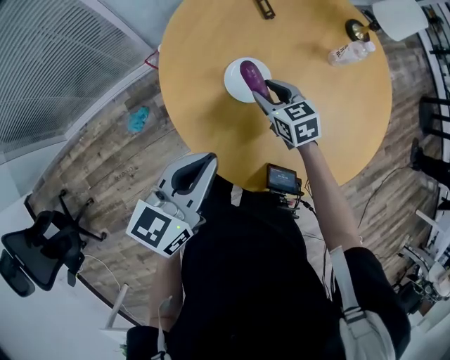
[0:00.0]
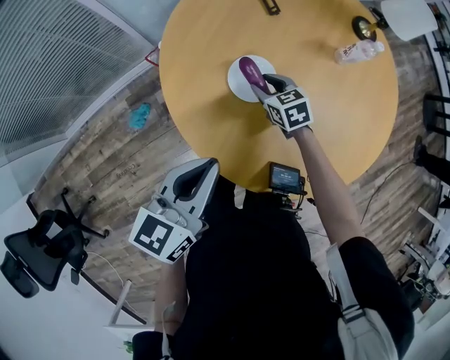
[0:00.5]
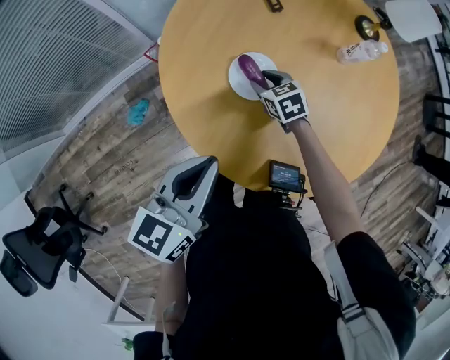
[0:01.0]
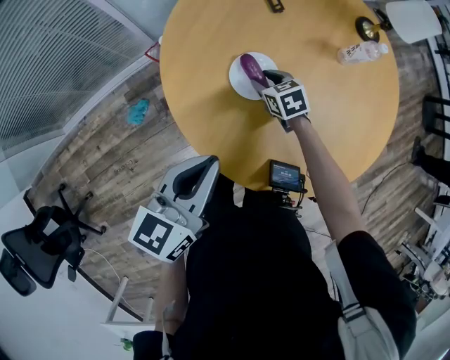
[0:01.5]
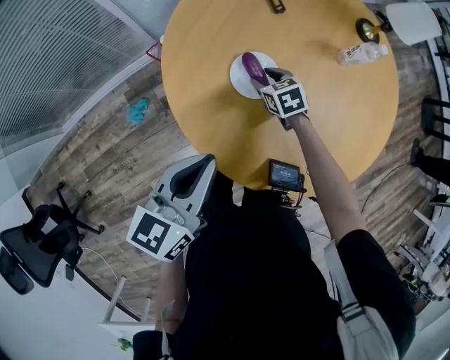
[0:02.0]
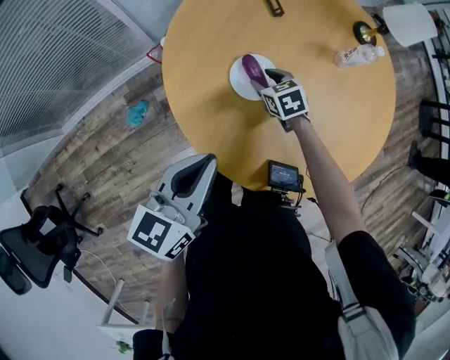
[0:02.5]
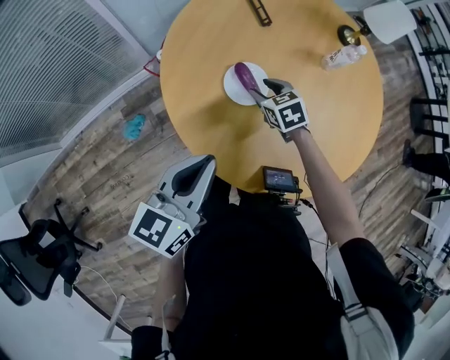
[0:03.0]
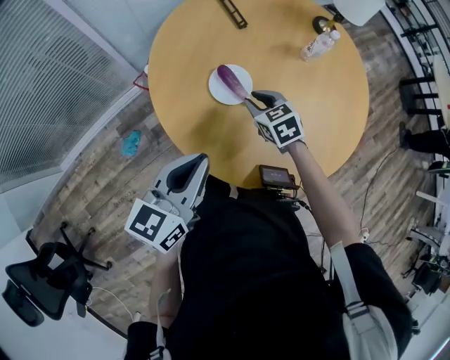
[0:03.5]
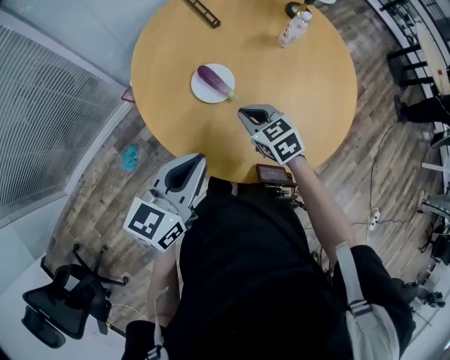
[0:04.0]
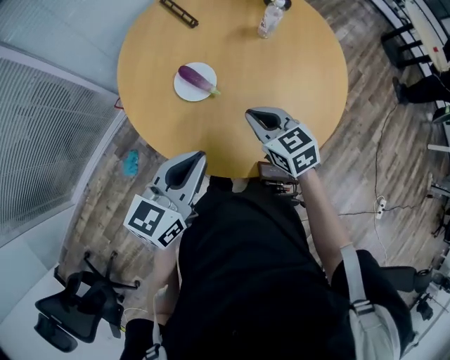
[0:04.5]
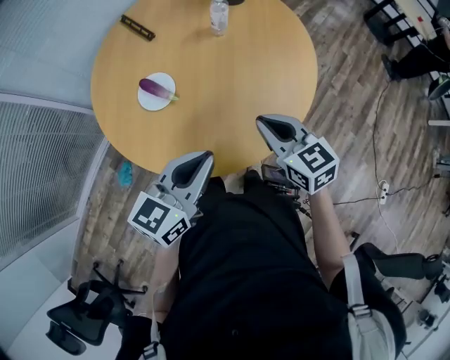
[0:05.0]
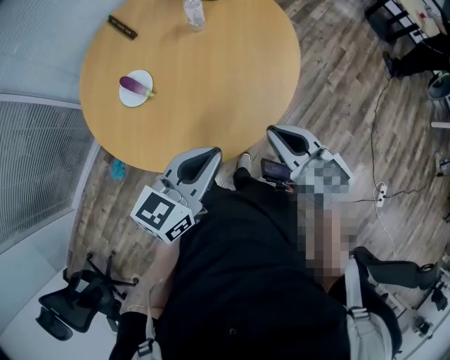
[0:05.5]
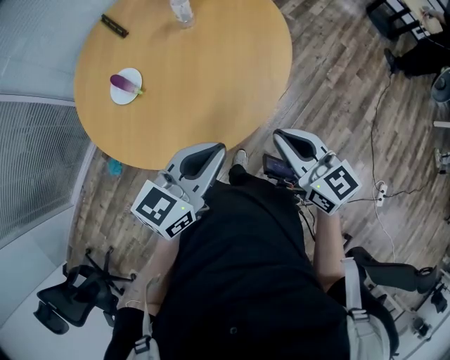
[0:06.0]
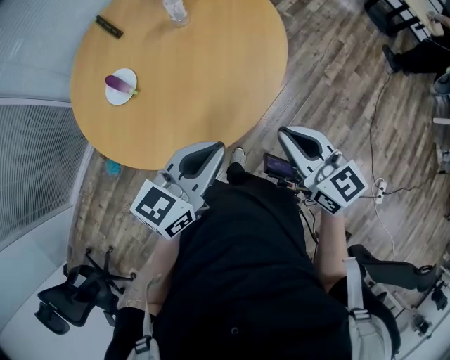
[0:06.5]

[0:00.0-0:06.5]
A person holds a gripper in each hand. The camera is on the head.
0:00.0 to 0:02.0: The right gripper goes about 10 cm downward.
0:02.0 to 0:04.5: The left gripper is displaced to the right and backward by approximately 10 cm, and swivels approximately 20 degrees. Meanwhile the right gripper travels backward, upward and to the right by about 30 cm, changes its angle by roughly 20 degrees, and closes its fingers.
0:04.5 to 0:06.5: Both grippers move to the right, roughly 35 cm. The right gripper rotates approximately 20 degrees.

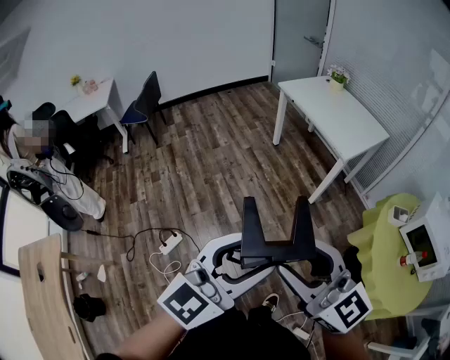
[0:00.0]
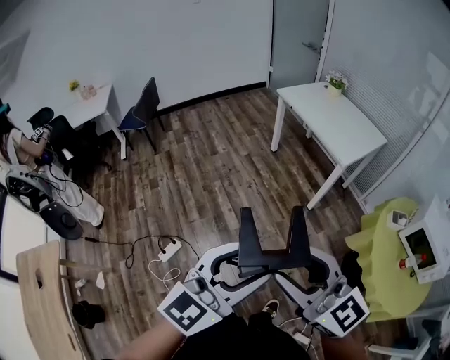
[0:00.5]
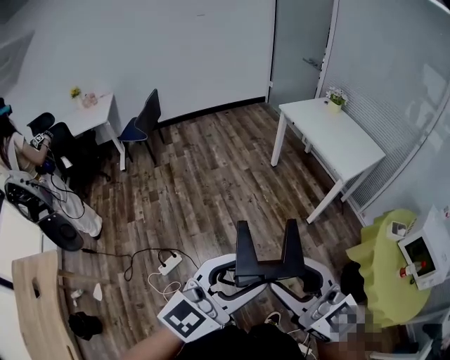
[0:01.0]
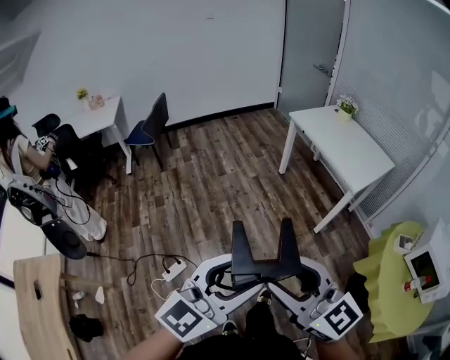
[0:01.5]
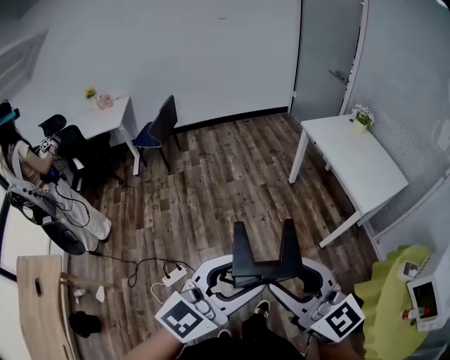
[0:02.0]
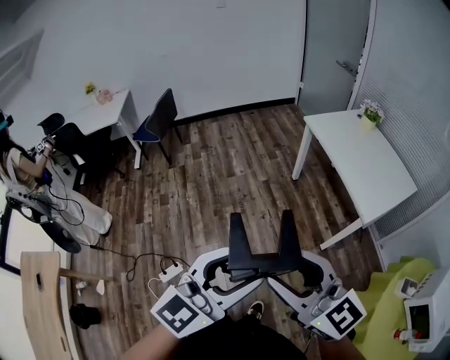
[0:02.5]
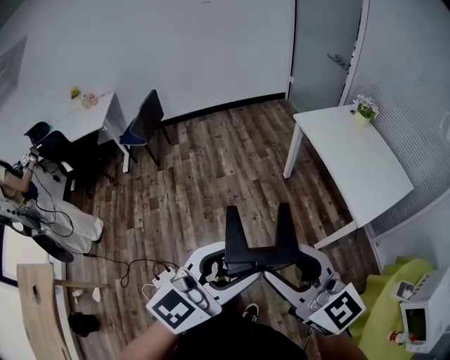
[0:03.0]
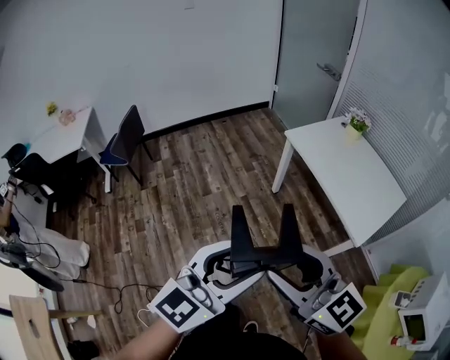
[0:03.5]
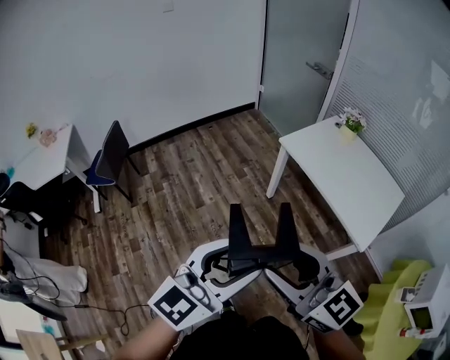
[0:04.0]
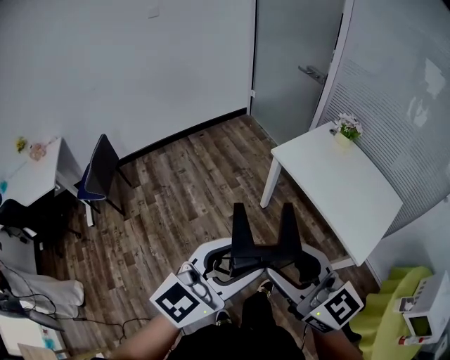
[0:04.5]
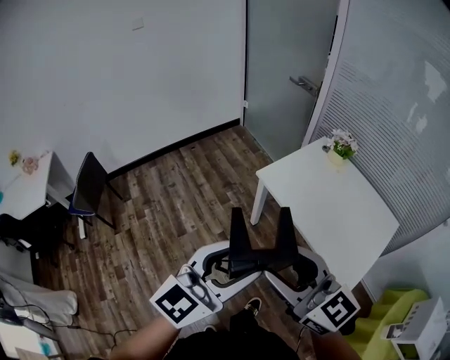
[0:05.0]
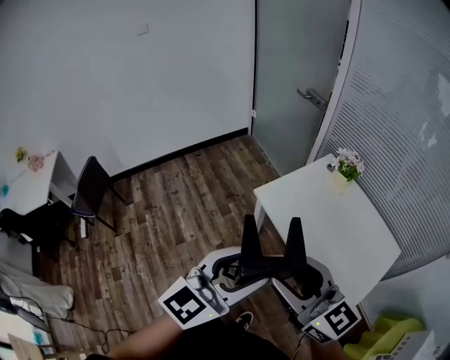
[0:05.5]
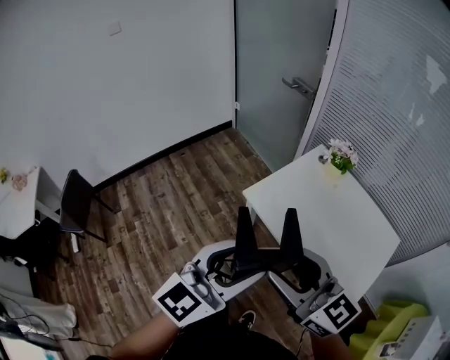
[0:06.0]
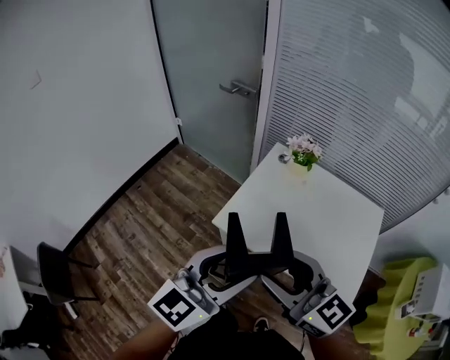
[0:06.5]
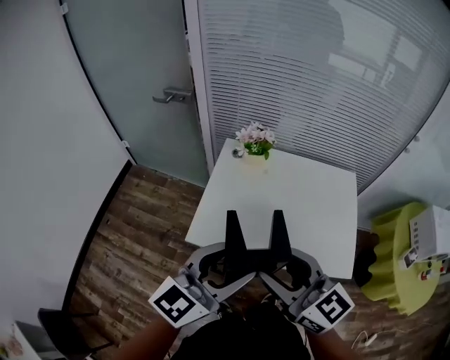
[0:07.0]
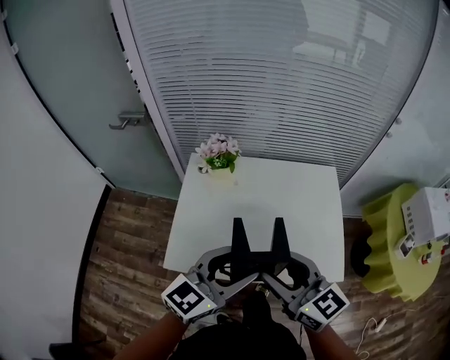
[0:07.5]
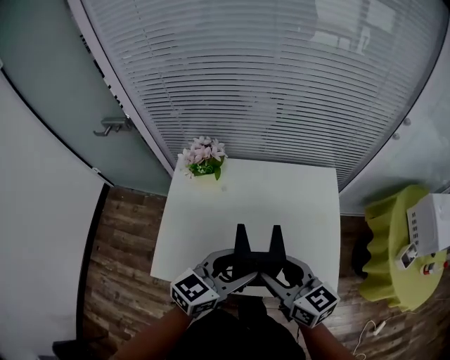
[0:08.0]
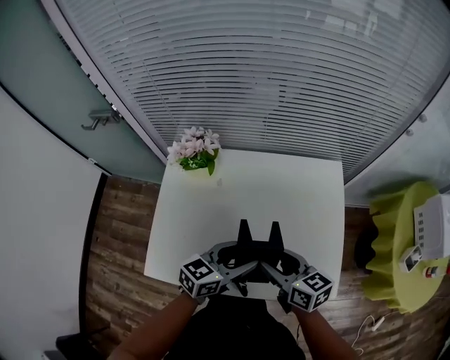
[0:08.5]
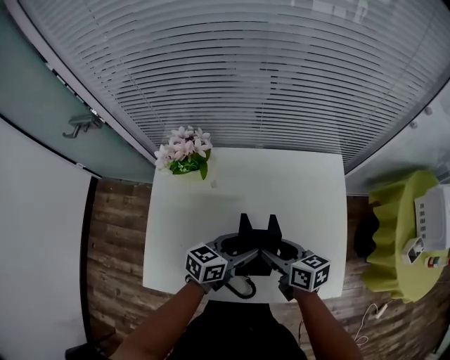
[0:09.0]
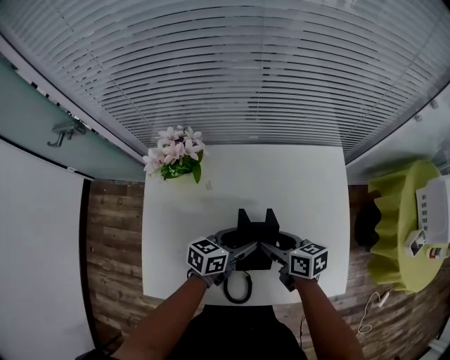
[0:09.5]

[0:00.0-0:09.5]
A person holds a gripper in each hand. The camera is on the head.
0:00.0 to 0:02.0: Both grippers travel together forward and to the left, roughly 20 cm.
0:02.0 to 0:04.0: The two grippers travel together, forward, some 40 cm.
0:04.0 to 0:05.5: The two grippers go approximately 35 cm forward and to the right.
0:05.5 to 0:07.5: The right gripper ends up some 30 cm from where it was, and swivels approximately 50 degrees; the left gripper ends up some 30 cm from where it was, and rotates about 50 degrees.
0:07.5 to 0:09.5: Both grippers travel together downward and forward, some 35 cm. The right gripper swivels some 40 degrees. Meanwhile the left gripper rotates some 40 degrees.

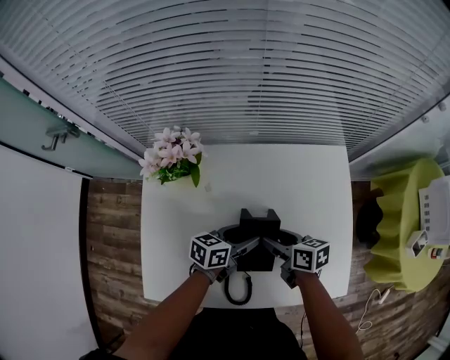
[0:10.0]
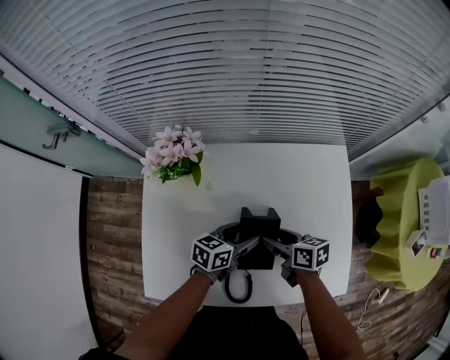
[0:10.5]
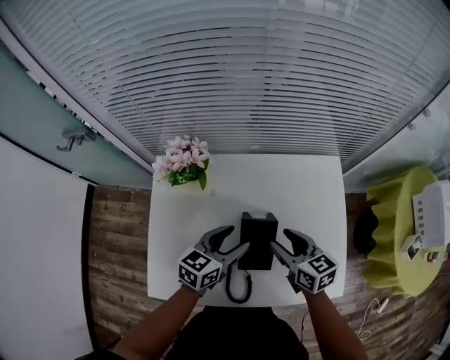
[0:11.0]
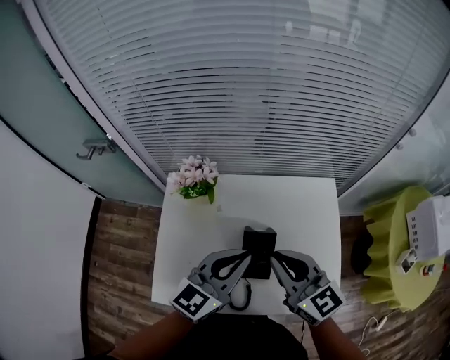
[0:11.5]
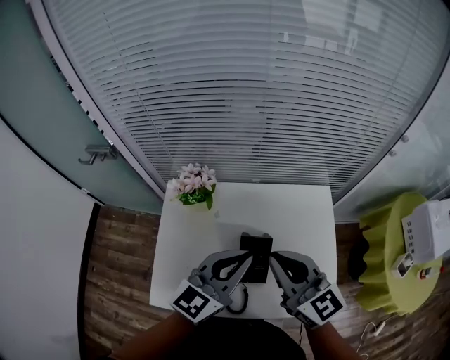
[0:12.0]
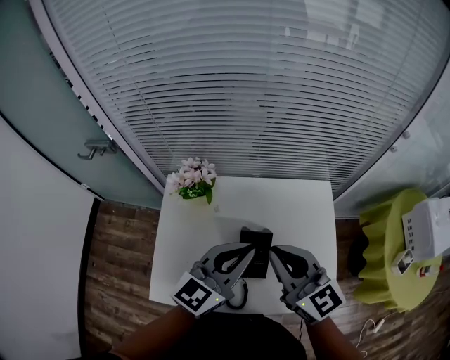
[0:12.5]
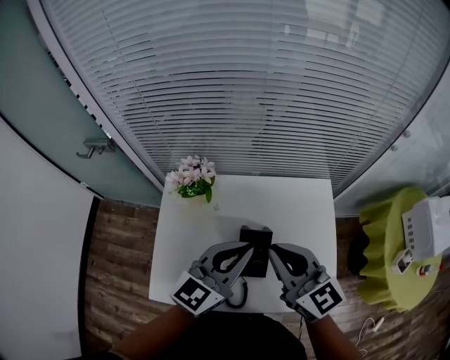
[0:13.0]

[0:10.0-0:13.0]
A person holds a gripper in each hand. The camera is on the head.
0:10.0 to 0:11.5: The two grippers go some 30 cm upward. The left gripper turns by about 50 degrees, and closes its fingers. The right gripper rolls counterclockwise, seen from behind, by about 40 degrees, and closes up.
0:11.5 to 0:13.0: The grippers move only a little.

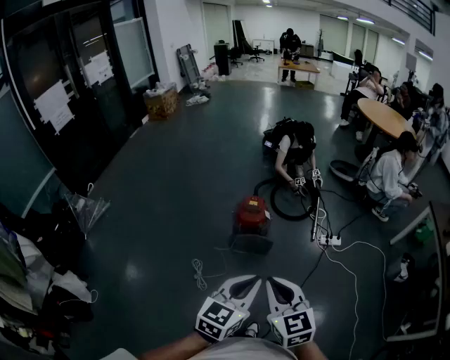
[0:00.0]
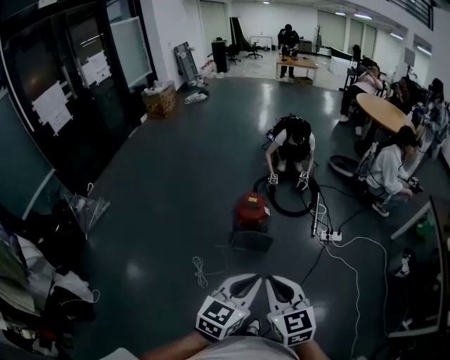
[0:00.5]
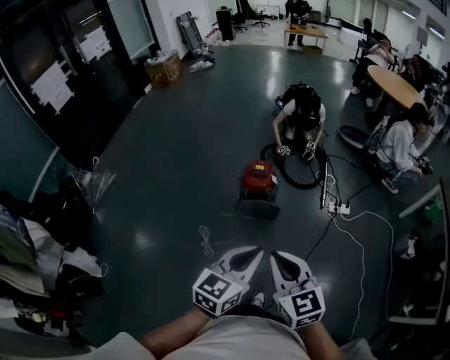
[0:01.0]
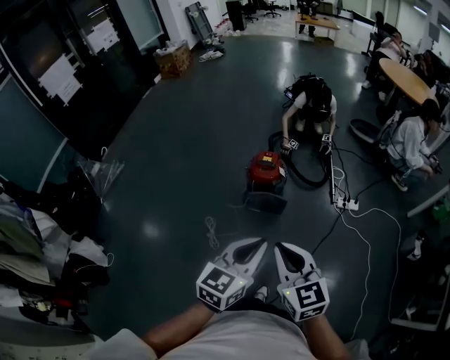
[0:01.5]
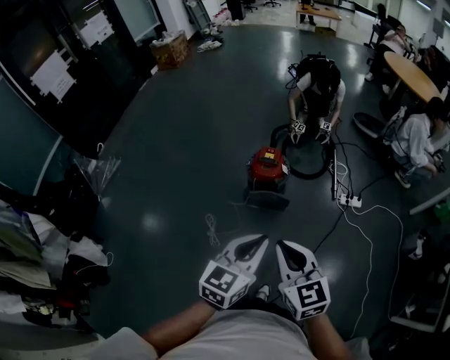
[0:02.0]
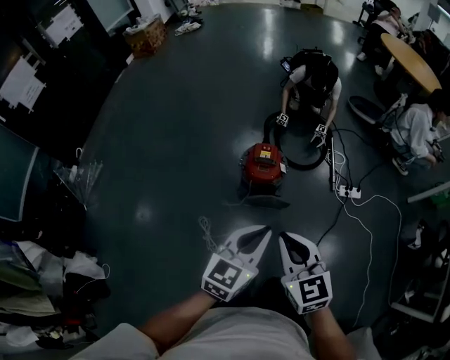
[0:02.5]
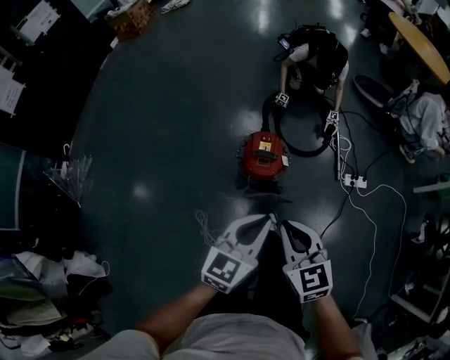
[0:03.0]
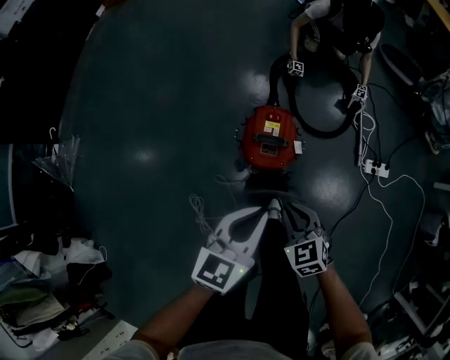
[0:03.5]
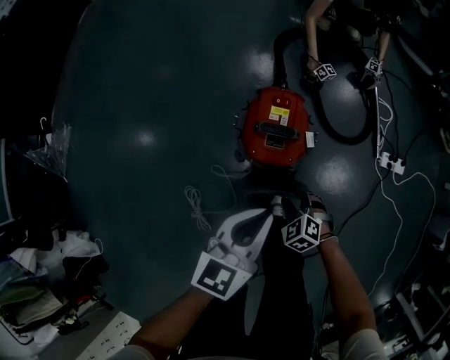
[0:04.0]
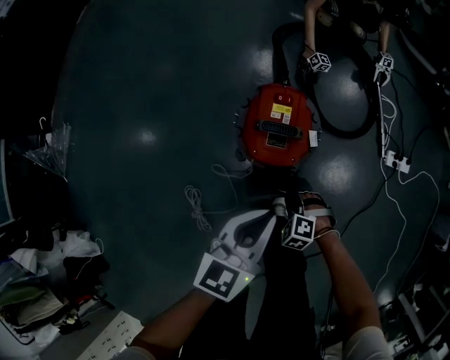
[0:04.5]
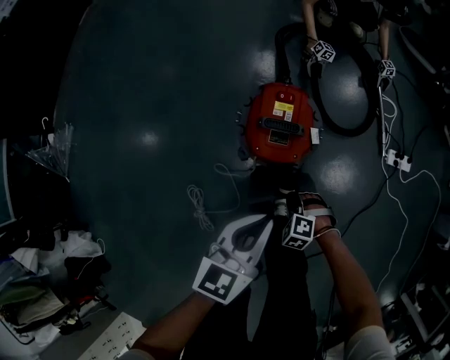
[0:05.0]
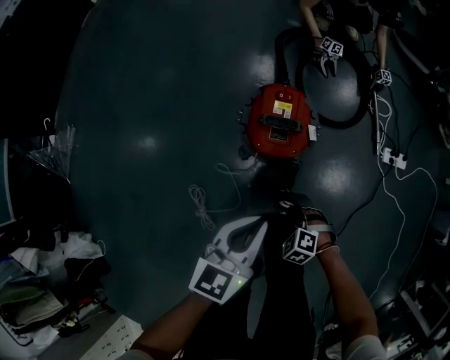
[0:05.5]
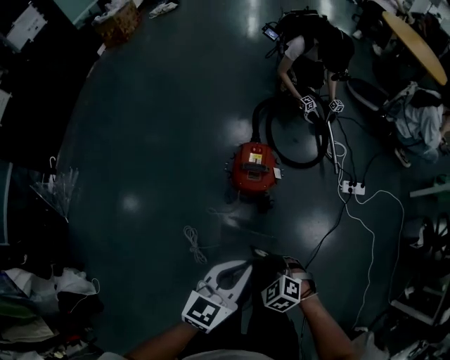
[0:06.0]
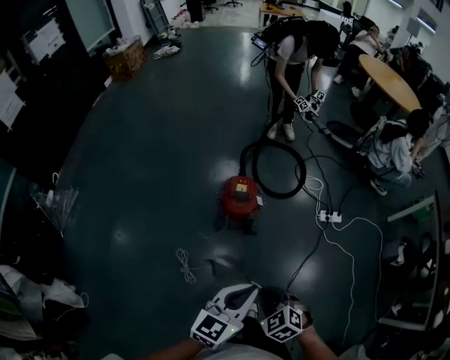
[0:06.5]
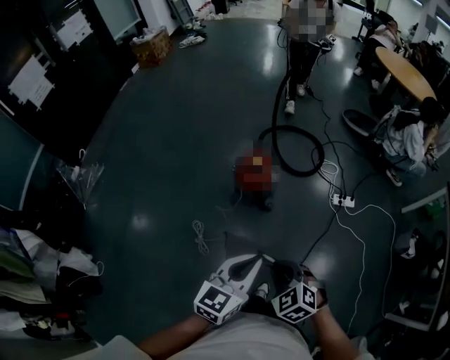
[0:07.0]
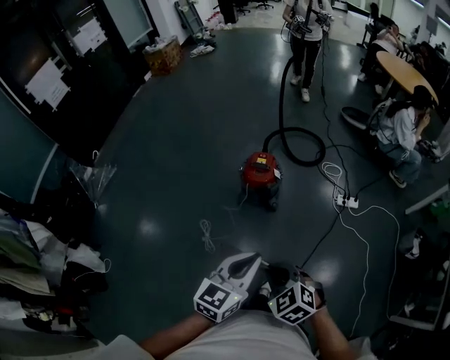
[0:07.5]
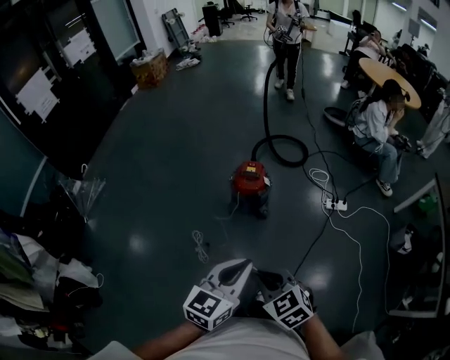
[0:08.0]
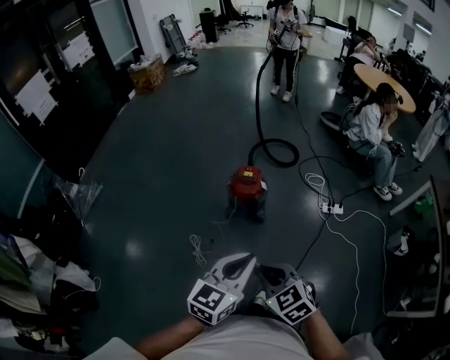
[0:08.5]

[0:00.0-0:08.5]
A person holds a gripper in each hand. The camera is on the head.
0:00.0 to 0:02.0: The grippers both shift forward by approximately 10 cm.
0:02.0 to 0:04.0: The grippers both shift downward and forward by roughly 70 cm. The right gripper points its fingers some 40 degrees further downward, and opens its fingers.
0:04.0 to 0:06.5: The grippers both shift upward and backward by some 50 cm. The right gripper closes.
0:06.5 to 0:08.5: The two grippers go about 25 cm backward and upward.
